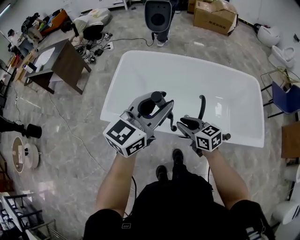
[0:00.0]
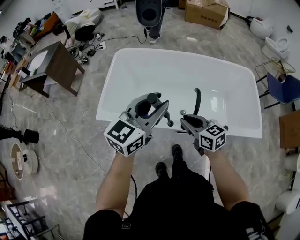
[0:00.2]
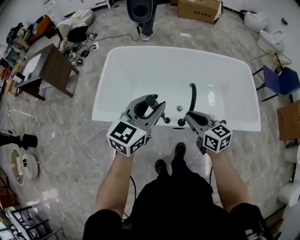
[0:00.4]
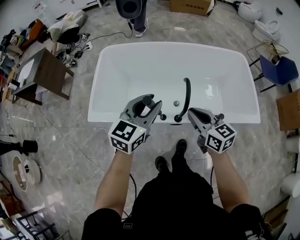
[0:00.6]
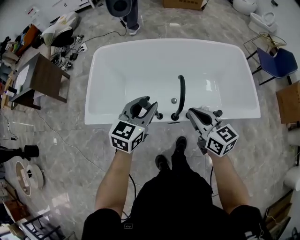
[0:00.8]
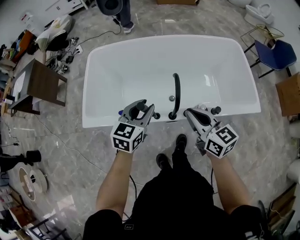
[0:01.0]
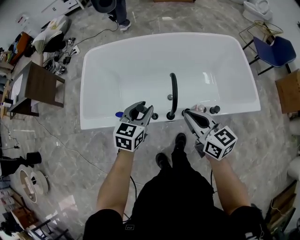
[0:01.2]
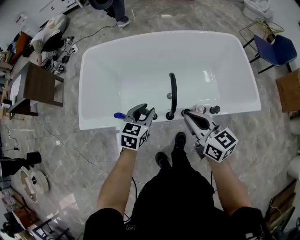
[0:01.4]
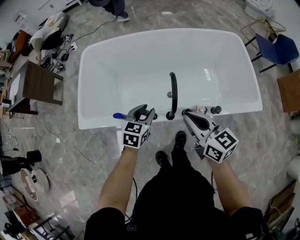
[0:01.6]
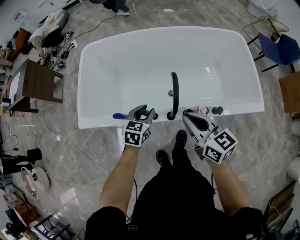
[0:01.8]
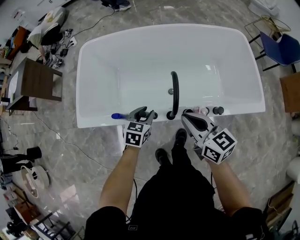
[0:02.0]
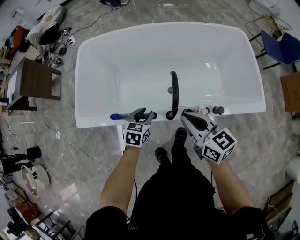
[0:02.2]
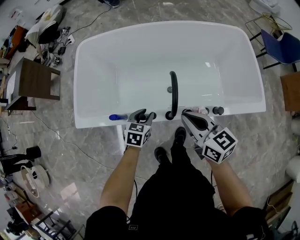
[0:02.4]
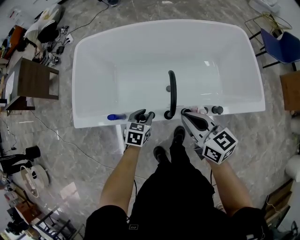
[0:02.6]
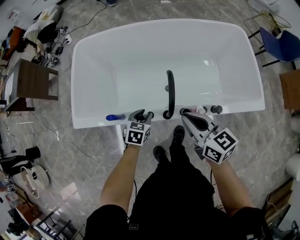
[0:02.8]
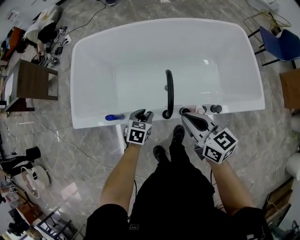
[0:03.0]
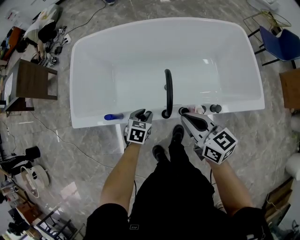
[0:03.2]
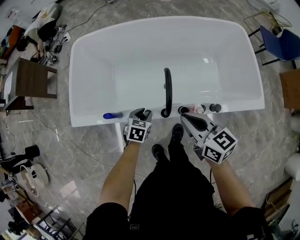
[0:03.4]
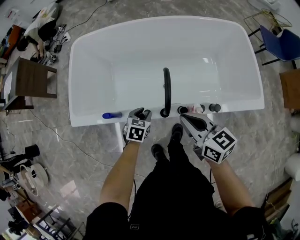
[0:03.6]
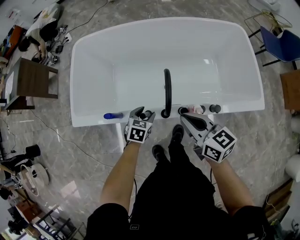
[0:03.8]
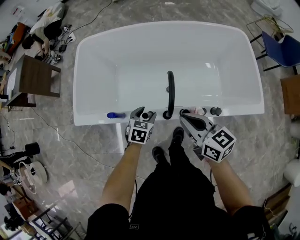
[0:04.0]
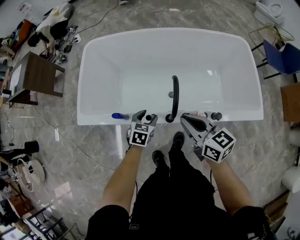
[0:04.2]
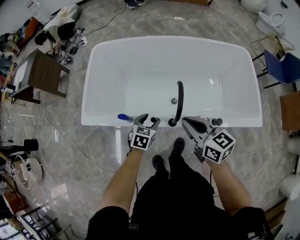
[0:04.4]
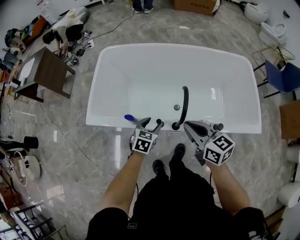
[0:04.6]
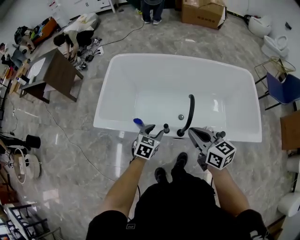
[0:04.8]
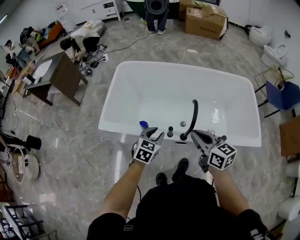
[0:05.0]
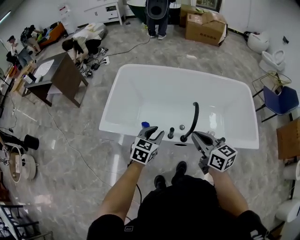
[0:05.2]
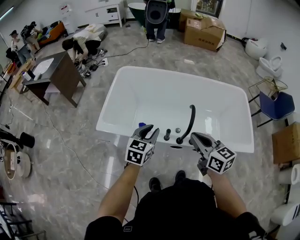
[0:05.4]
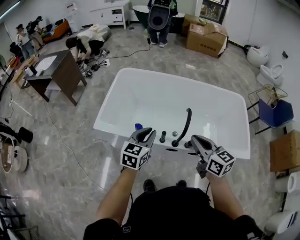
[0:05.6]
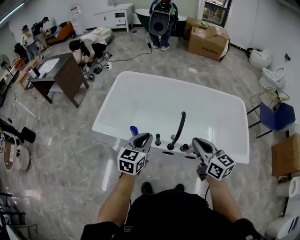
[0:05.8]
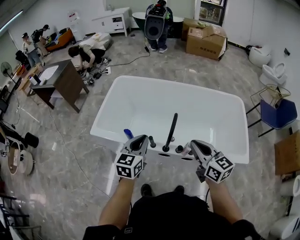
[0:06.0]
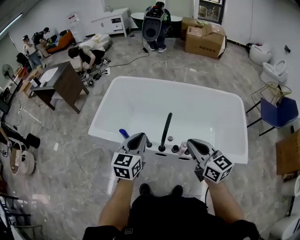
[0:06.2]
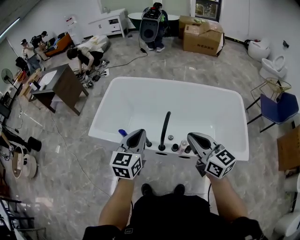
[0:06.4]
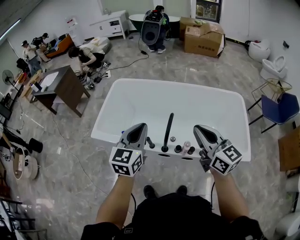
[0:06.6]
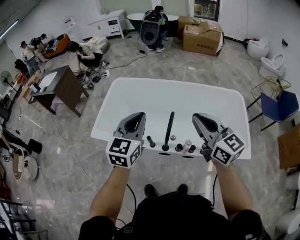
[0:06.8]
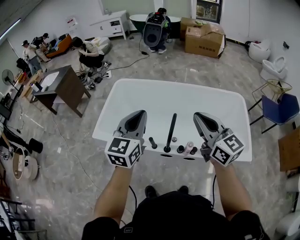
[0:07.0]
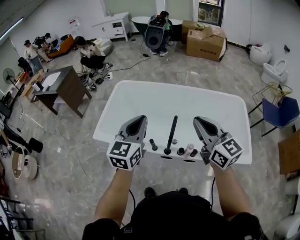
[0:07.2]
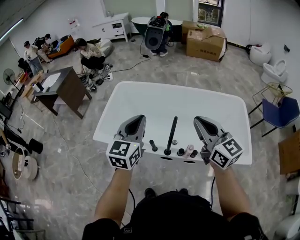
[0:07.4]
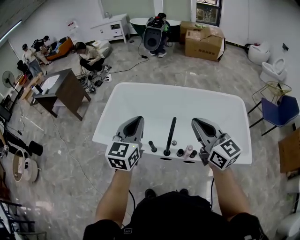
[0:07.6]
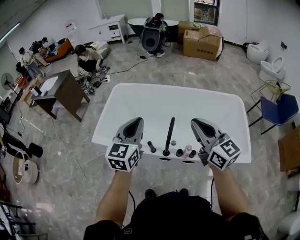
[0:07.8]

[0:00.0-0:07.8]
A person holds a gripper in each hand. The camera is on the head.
0:00.0 to 0:01.6: The left gripper moves downward, some 30 cm, and angles its fingers downward, by about 40 degrees, while the right gripper is displaced to the right by approximately 15 cm, turns by some 20 degrees, and closes.
0:01.6 to 0:03.2: The left gripper moves downward, roughly 15 cm.
0:03.2 to 0:04.6: The left gripper shifts roughly 10 cm upward, and opens up; the right gripper ends up roughly 5 cm from where it was.
0:04.6 to 0:06.2: The right gripper moves upward, to the right and backward, roughly 15 cm. The left gripper goes roughly 25 cm upward, turns by roughly 30 degrees, and closes.
0:06.2 to 0:07.8: Both grippers move upward and forward, some 10 cm.

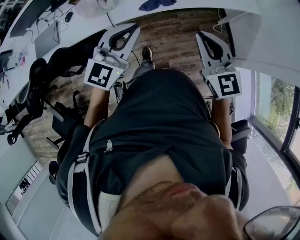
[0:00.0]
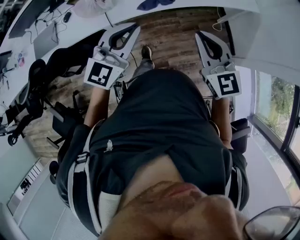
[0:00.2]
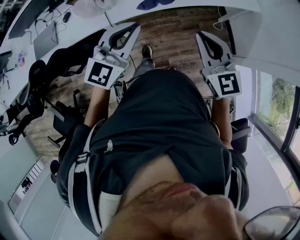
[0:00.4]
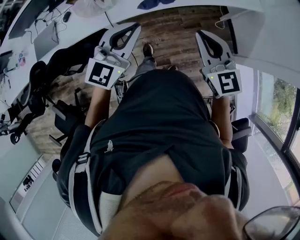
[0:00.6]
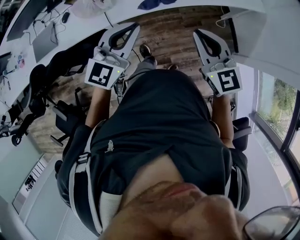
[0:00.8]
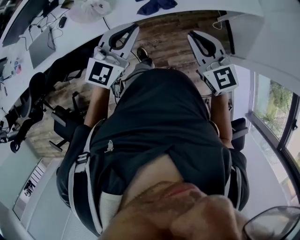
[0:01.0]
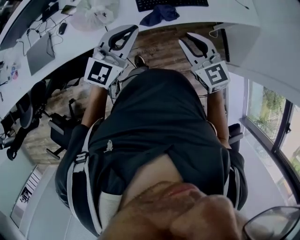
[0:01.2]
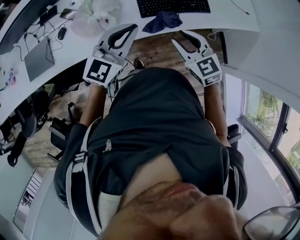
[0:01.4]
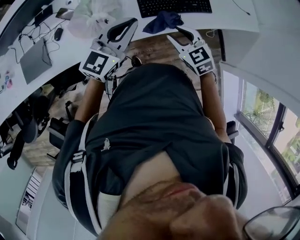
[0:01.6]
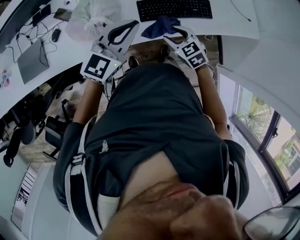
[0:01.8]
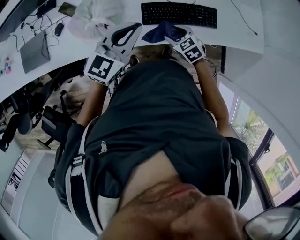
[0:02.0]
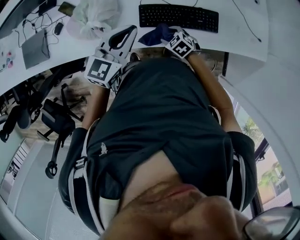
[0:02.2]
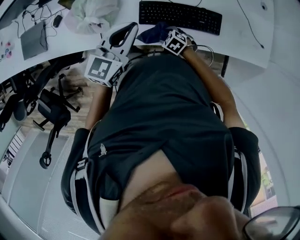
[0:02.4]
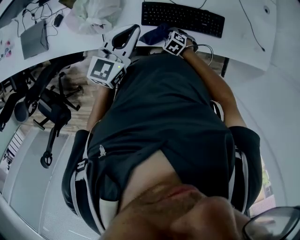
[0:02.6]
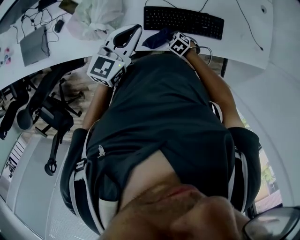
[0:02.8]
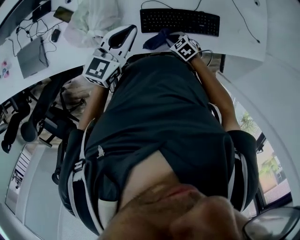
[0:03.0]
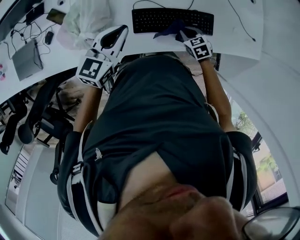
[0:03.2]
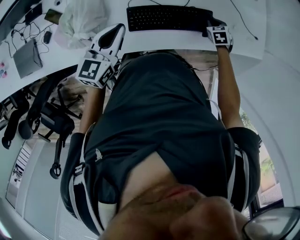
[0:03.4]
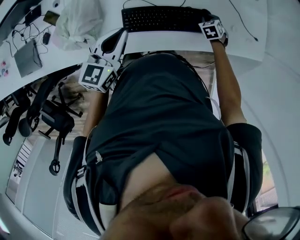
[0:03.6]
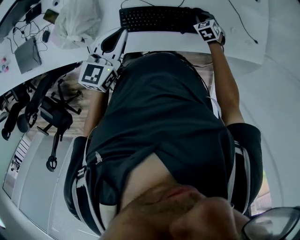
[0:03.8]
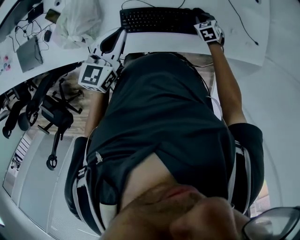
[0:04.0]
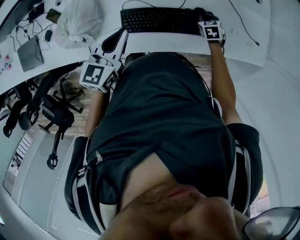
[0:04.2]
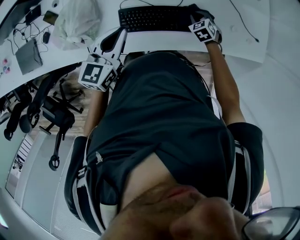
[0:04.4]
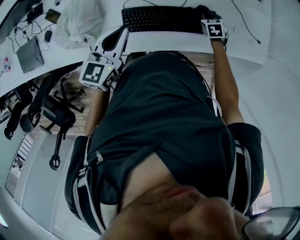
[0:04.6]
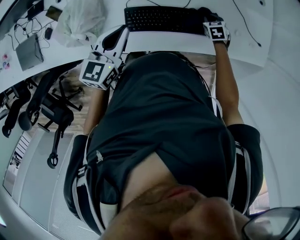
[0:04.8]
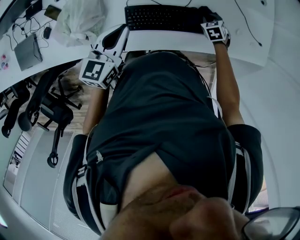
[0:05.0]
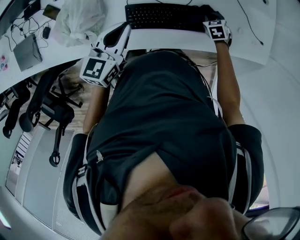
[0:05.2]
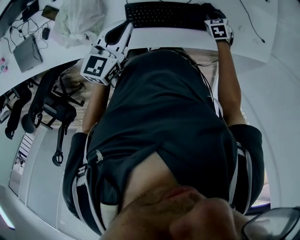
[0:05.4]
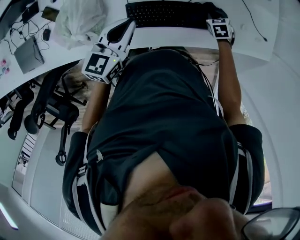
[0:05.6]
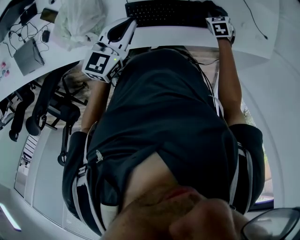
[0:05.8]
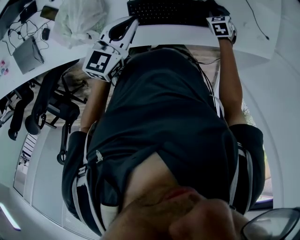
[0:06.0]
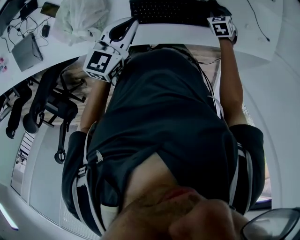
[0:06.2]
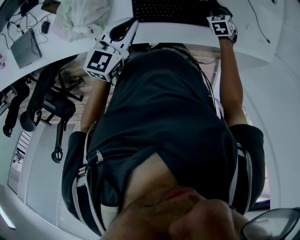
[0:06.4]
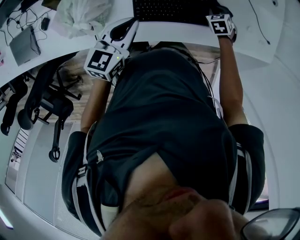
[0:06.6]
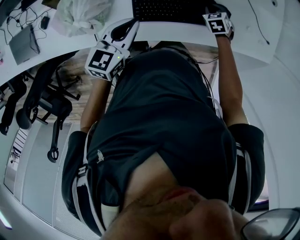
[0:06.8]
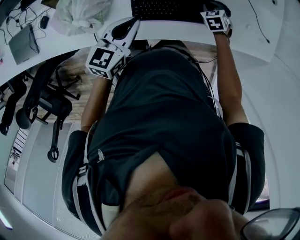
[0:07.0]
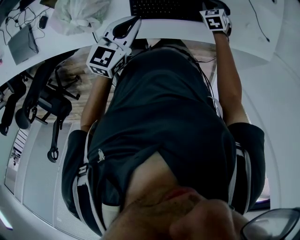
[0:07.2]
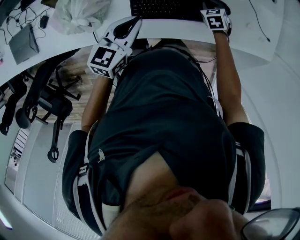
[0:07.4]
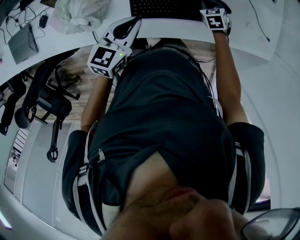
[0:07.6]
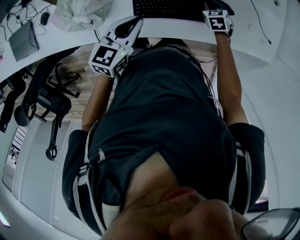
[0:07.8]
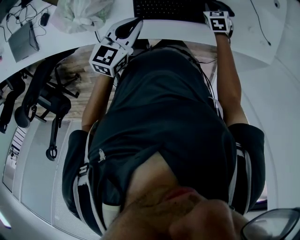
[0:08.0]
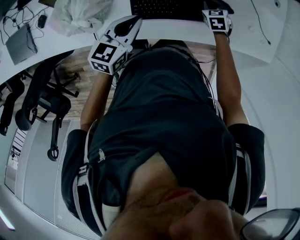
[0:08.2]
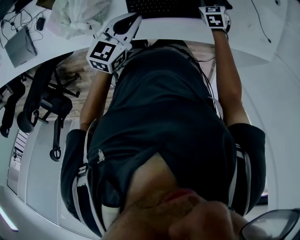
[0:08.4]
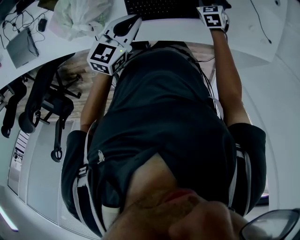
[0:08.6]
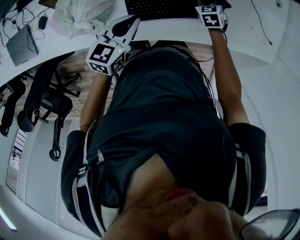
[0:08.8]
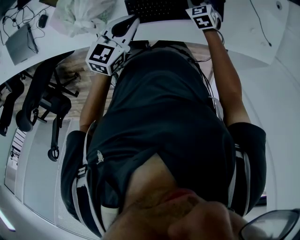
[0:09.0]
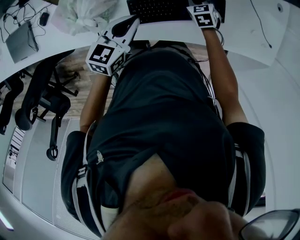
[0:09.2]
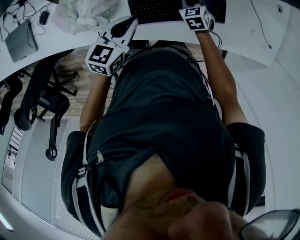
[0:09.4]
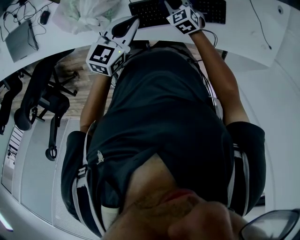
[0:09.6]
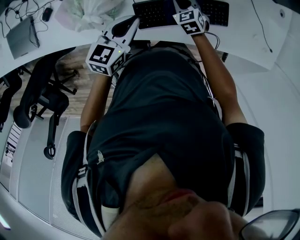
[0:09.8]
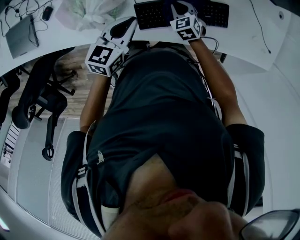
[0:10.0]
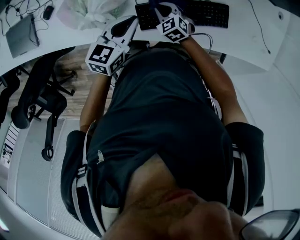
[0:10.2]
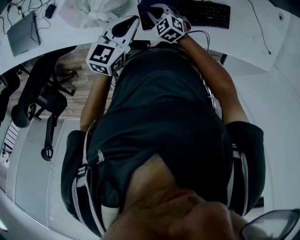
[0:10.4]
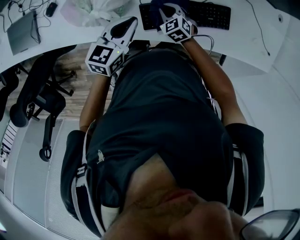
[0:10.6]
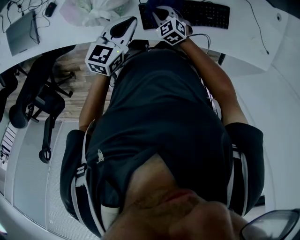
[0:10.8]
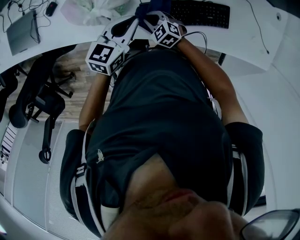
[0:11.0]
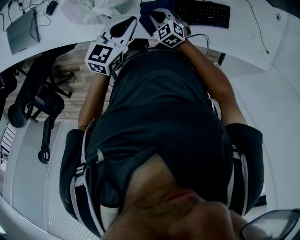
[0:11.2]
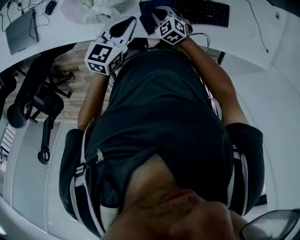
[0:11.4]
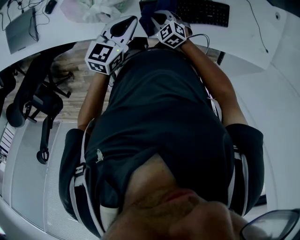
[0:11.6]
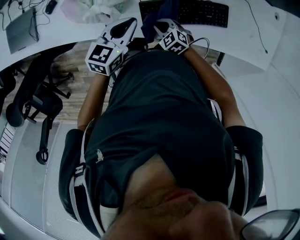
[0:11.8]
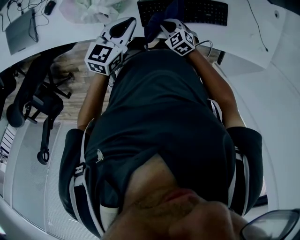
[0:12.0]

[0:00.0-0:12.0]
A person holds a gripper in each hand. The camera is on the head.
0:00.0 to 0:01.6: The right gripper heads forward, downward and to the left, covering some 30 cm, rotates approximately 30 degrees, and opens up. The left gripper heads forward and to the left, covering some 25 cm.
0:01.6 to 0:03.0: The left gripper changes place by approximately 15 cm, and swivels about 20 degrees, while the right gripper heads downward, covering about 20 cm, rotates approximately 30 degrees, and closes its fingers.
0:03.0 to 0:04.4: The left gripper ends up approximately 10 cm from where it was; the right gripper ends up some 25 cm from where it was, and changes its angle by roughly 20 degrees.
0:04.4 to 0:06.0: The grippers move only a little.
0:06.0 to 0:07.6: The right gripper goes roughly 5 cm to the left; the left gripper is displaced backward by roughly 5 cm.
0:07.6 to 0:09.0: The right gripper moves to the left, approximately 10 cm. Meanwhile the left gripper changes place by approximately 5 cm.
0:09.0 to 0:10.4: The right gripper moves to the left and backward, some 25 cm, and changes its angle by about 30 degrees, while the left gripper is displaced to the left by some 5 cm.
0:10.4 to 0:12.0: The right gripper is displaced backward by roughly 10 cm.

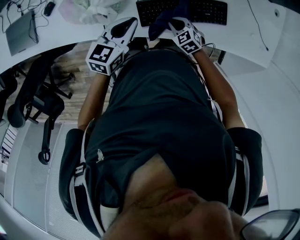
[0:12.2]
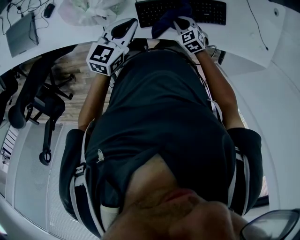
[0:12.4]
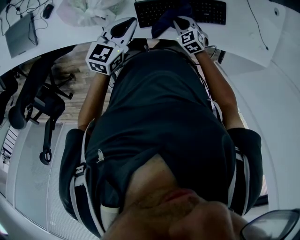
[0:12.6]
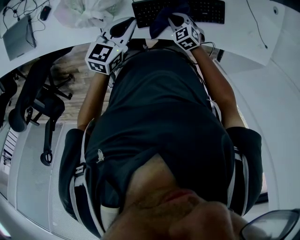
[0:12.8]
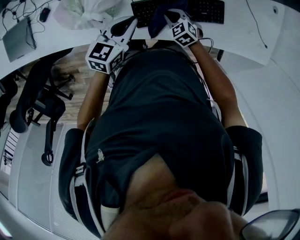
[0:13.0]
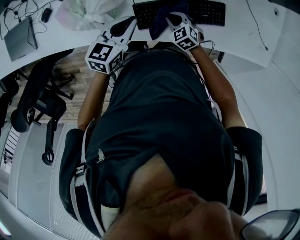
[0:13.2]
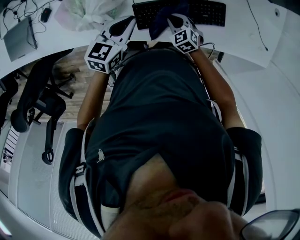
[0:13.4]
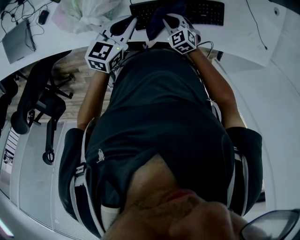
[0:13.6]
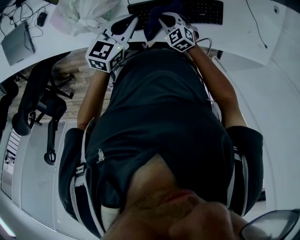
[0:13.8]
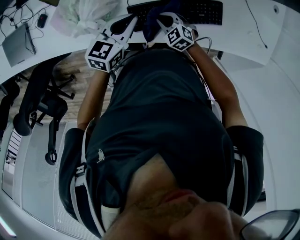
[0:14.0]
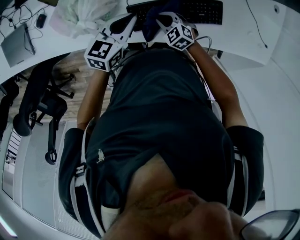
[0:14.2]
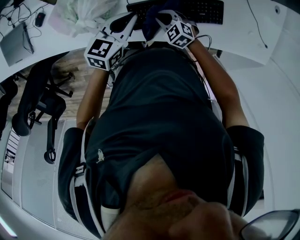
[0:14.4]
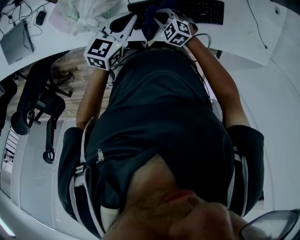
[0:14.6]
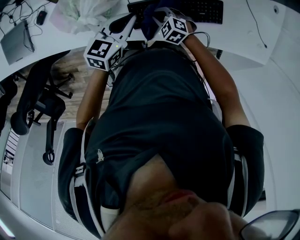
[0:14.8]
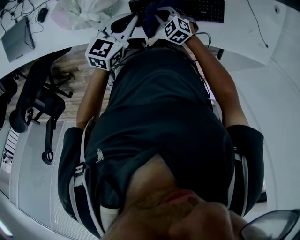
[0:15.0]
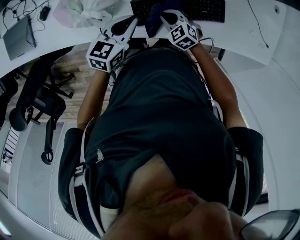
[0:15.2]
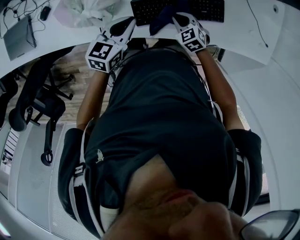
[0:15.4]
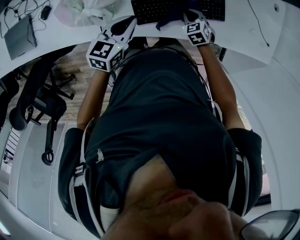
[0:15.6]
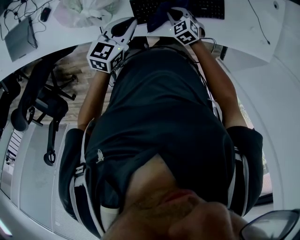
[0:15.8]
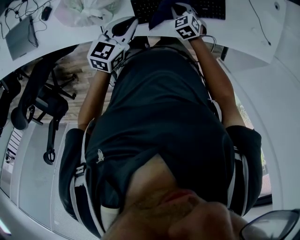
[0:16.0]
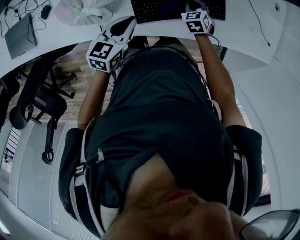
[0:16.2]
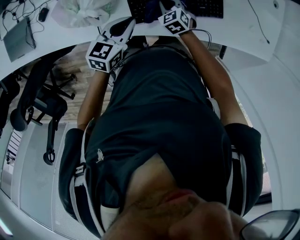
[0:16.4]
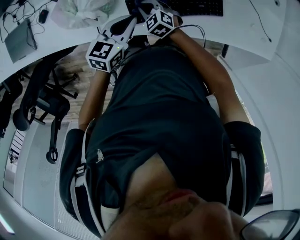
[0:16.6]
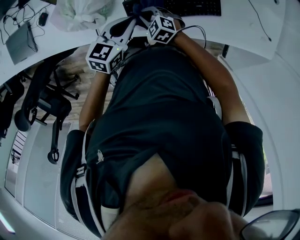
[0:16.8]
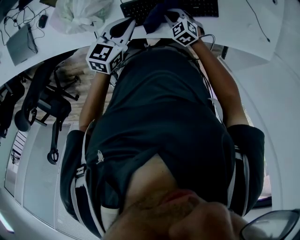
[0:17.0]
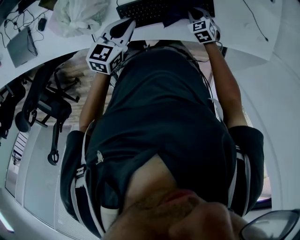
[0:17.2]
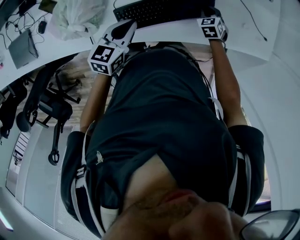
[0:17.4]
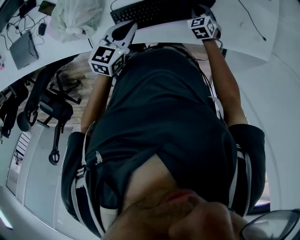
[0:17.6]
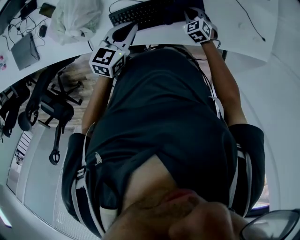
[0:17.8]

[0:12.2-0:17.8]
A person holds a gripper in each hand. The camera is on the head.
0:12.2 to 0:13.6: The grippers move only a little.
0:13.6 to 0:15.0: The grippers make only small movements.
0:15.0 to 0:16.4: The right gripper turns by about 20 degrees.
0:16.4 to 0:17.8: The left gripper shifts by roughly 10 cm; the right gripper ends up approximately 20 cm from where it was.
